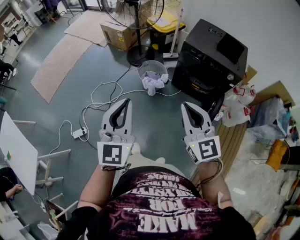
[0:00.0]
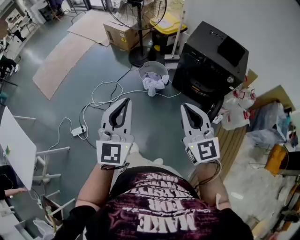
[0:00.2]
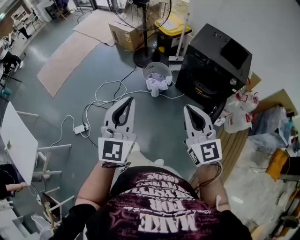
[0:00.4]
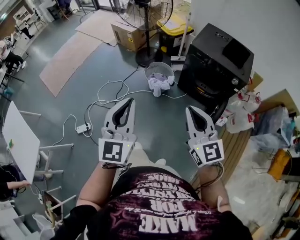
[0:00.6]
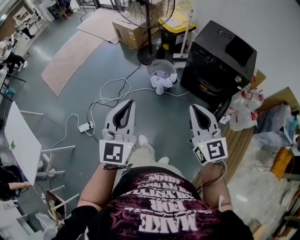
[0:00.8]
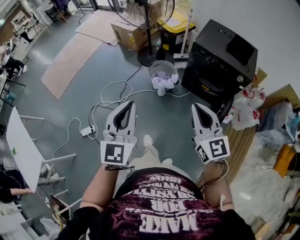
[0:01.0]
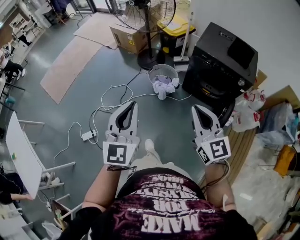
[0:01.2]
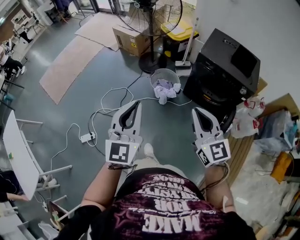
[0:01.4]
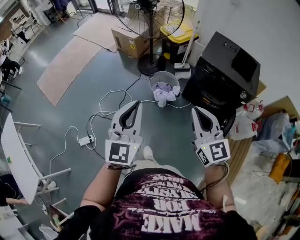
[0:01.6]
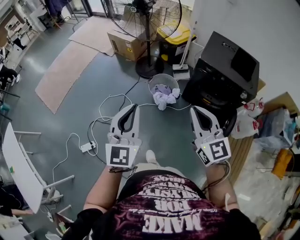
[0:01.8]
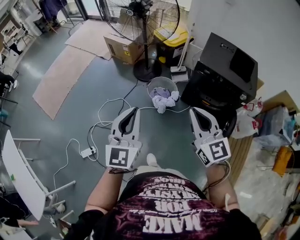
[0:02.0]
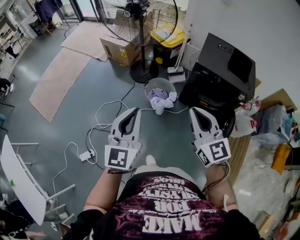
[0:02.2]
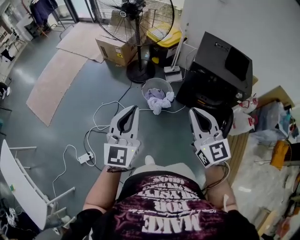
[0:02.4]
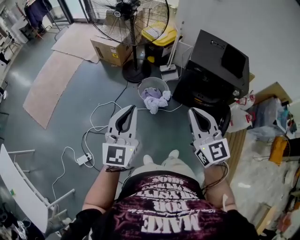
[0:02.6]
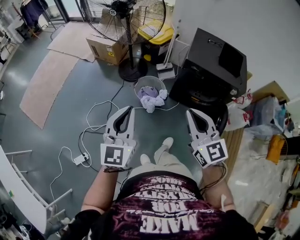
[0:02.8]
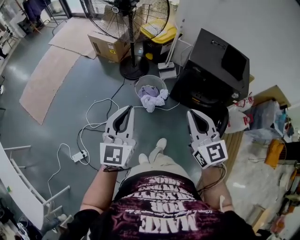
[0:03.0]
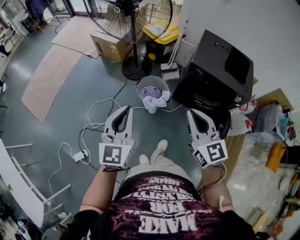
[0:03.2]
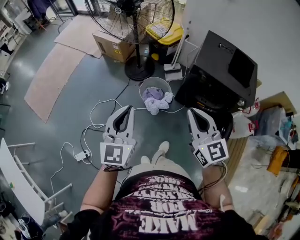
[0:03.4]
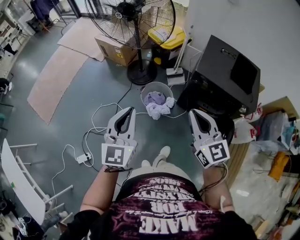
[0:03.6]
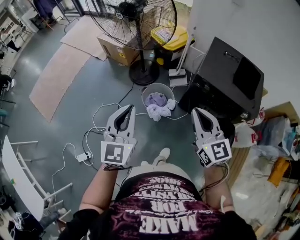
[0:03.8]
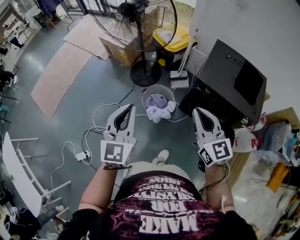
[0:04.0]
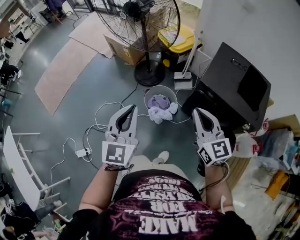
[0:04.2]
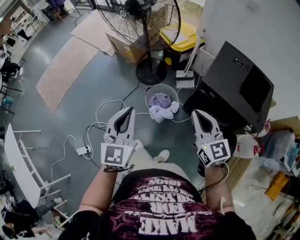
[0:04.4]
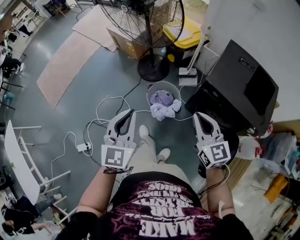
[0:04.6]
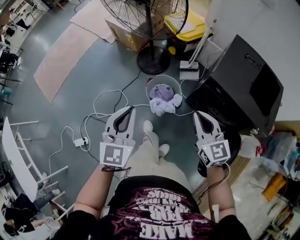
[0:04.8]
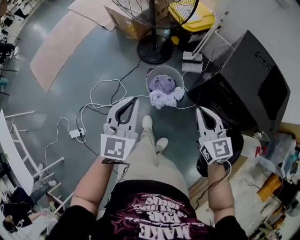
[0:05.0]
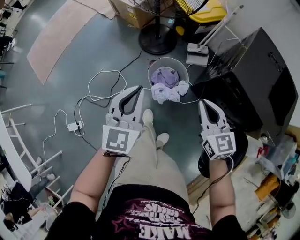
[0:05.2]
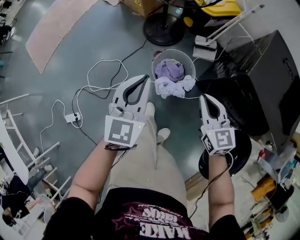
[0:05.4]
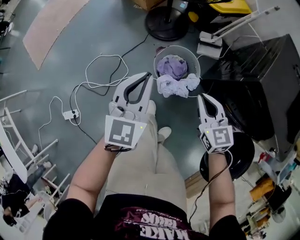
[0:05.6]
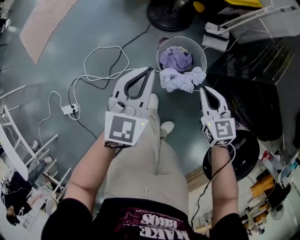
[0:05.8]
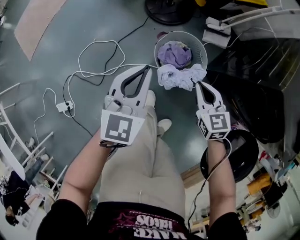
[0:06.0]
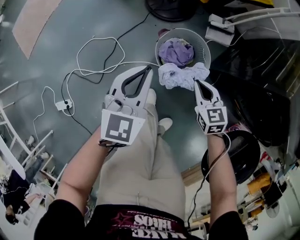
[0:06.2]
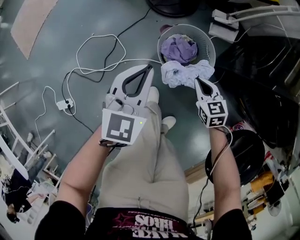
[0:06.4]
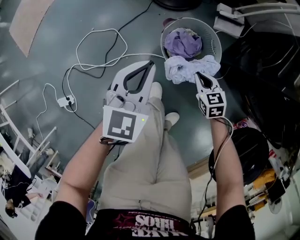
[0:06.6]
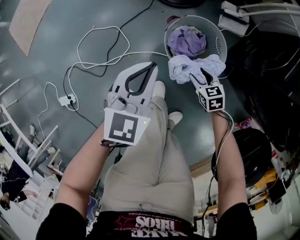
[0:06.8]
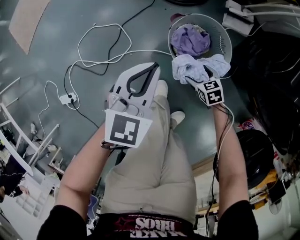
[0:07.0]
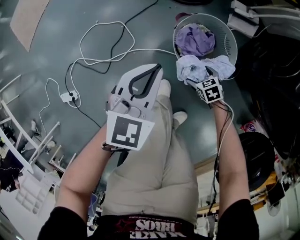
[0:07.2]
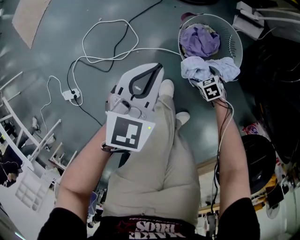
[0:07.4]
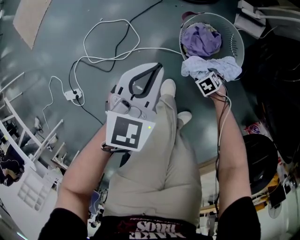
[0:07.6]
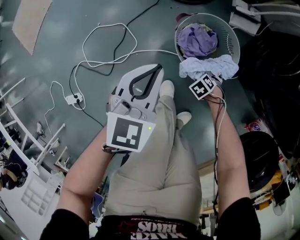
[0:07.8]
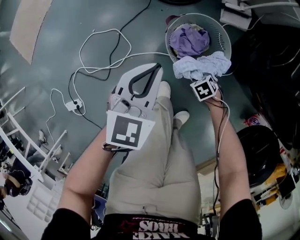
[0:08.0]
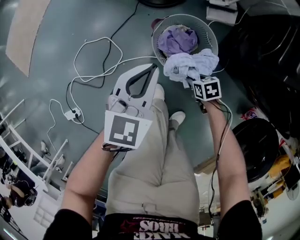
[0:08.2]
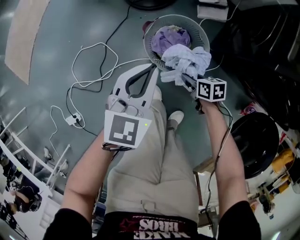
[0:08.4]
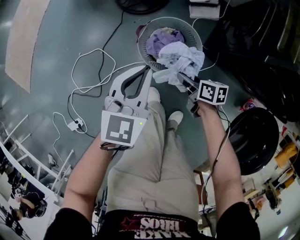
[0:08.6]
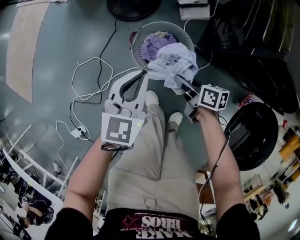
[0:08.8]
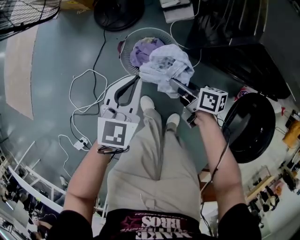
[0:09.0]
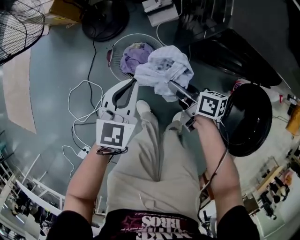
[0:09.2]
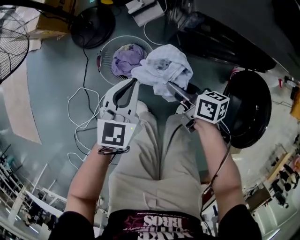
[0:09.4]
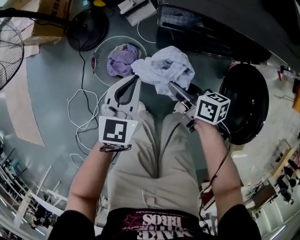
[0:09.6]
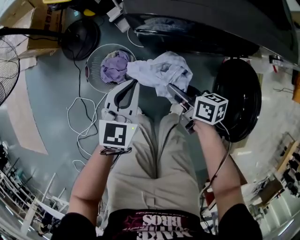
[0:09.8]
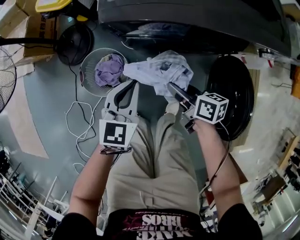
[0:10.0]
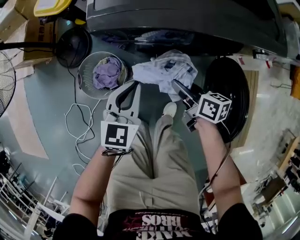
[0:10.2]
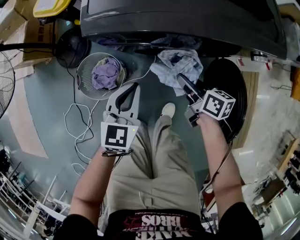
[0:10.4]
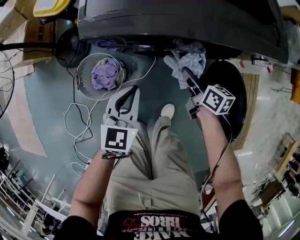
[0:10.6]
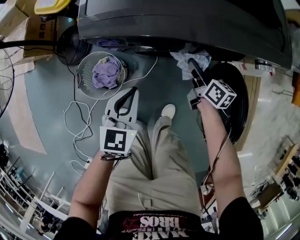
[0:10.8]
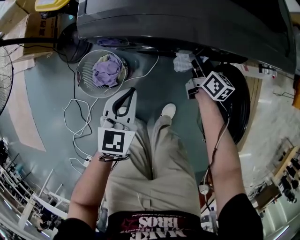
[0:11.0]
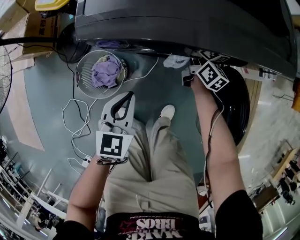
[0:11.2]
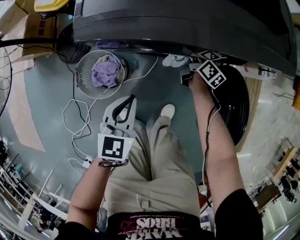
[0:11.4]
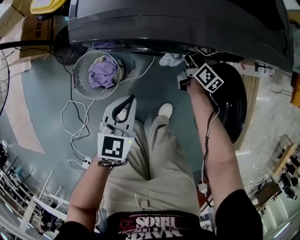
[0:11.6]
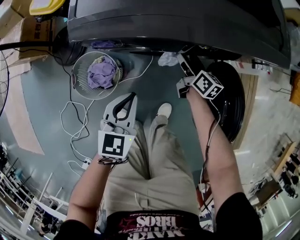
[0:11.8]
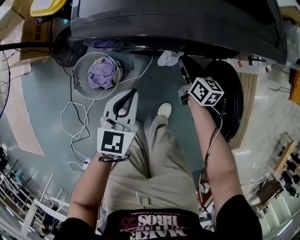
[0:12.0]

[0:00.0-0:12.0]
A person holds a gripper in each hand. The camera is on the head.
0:00.0 to 0:01.6: The two grippers go about 10 cm forward.
0:01.6 to 0:03.0: The left gripper shifts about 15 cm forward and downward, while the right gripper travels forward by approximately 10 cm.
0:03.0 to 0:04.4: The two grippers go about 20 cm forward and to the right.
0:04.4 to 0:06.0: The left gripper travels downward and forward by approximately 40 cm, while the right gripper goes approximately 50 cm downward, and swivels roughly 30 degrees.
0:06.0 to 0:07.6: The right gripper heads downward, covering some 40 cm, tips its fingers downward by roughly 40 degrees, and opens its fingers. Meanwhile the left gripper heads downward, covering roughly 15 cm.
0:07.6 to 0:09.0: The right gripper goes approximately 35 cm upward, tips its fingers upward by roughly 50 degrees, and closes, while the left gripper shifts by some 20 cm.
0:09.0 to 0:10.4: The right gripper moves about 35 cm, and turns by some 30 degrees; the left gripper shifts by some 30 cm.
0:10.4 to 0:12.0: The right gripper moves forward and downward, about 10 cm, changes its angle by roughly 20 degrees, and opens, then closes once more.

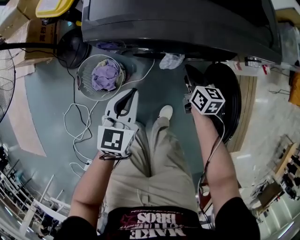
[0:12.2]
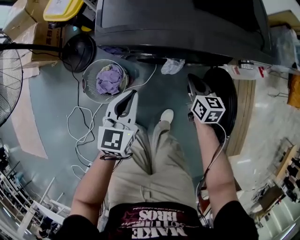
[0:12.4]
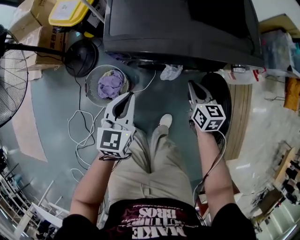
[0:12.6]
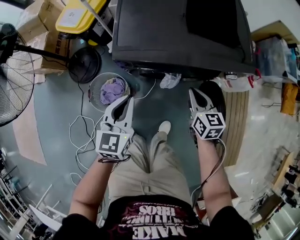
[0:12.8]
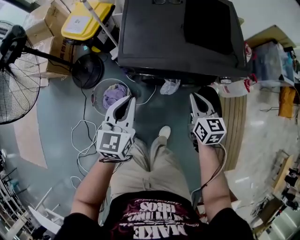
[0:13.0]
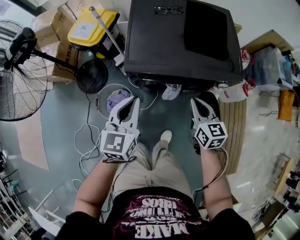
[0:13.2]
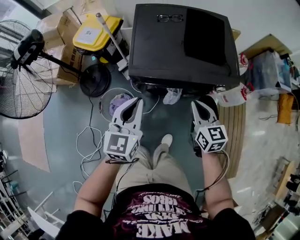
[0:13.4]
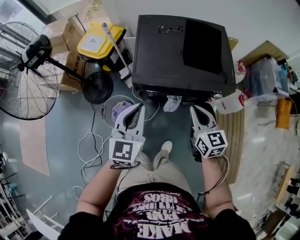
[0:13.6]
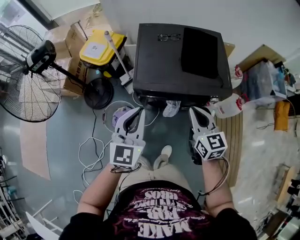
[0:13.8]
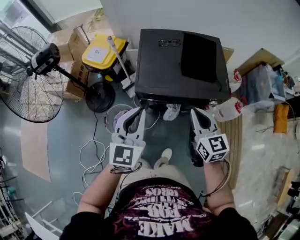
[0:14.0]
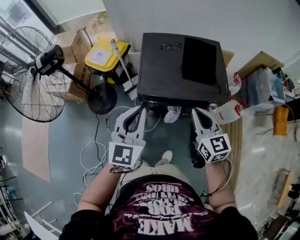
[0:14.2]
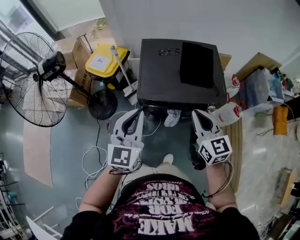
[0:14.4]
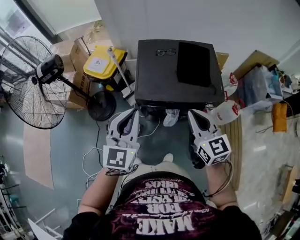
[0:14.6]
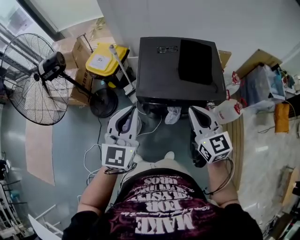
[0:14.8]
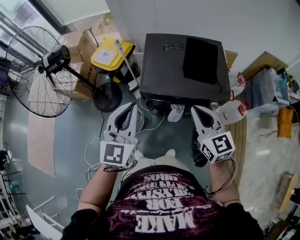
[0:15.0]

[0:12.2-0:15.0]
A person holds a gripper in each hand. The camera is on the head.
0:12.2 to 0:13.6: The grippers both shift upward by some 30 cm. The right gripper rotates roughly 20 degrees.
0:13.6 to 0:15.0: The two grippers go approximately 15 cm upward.

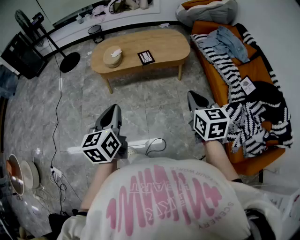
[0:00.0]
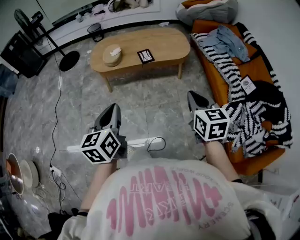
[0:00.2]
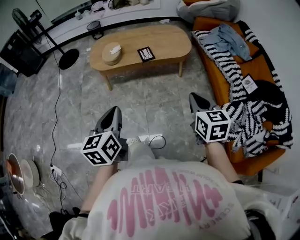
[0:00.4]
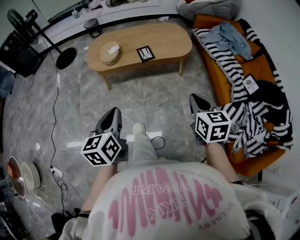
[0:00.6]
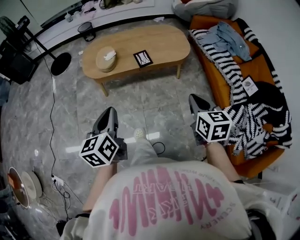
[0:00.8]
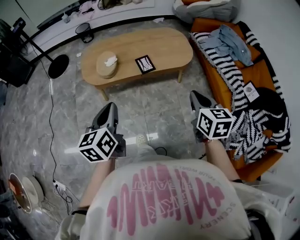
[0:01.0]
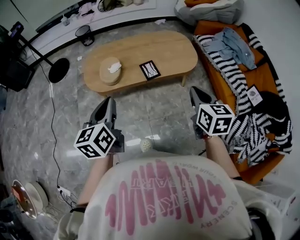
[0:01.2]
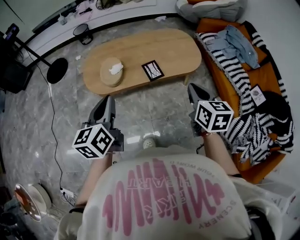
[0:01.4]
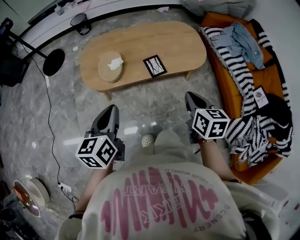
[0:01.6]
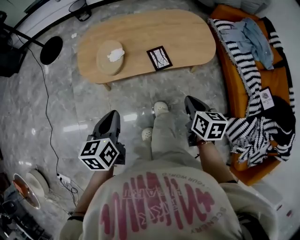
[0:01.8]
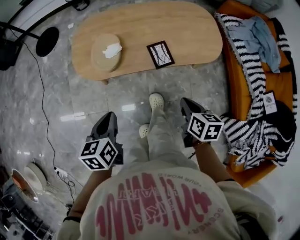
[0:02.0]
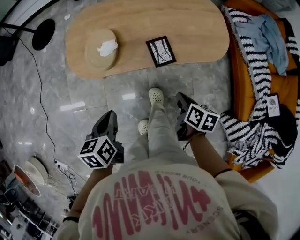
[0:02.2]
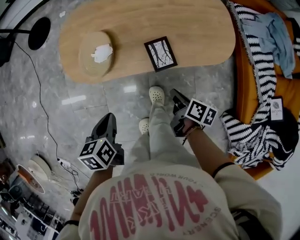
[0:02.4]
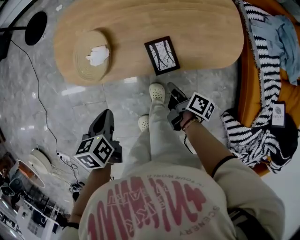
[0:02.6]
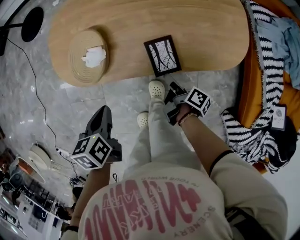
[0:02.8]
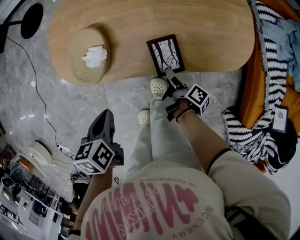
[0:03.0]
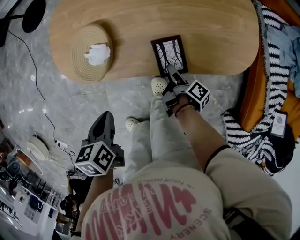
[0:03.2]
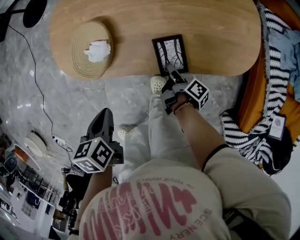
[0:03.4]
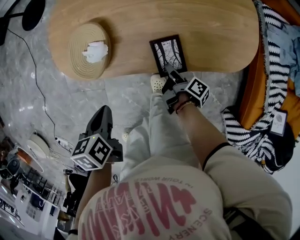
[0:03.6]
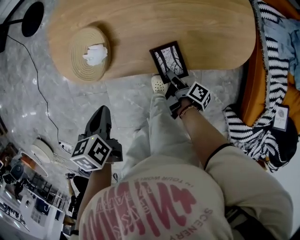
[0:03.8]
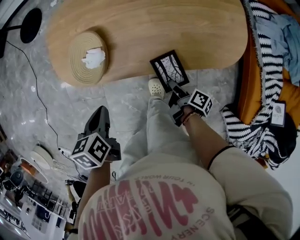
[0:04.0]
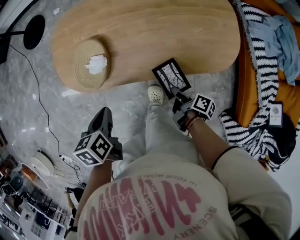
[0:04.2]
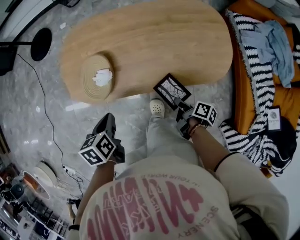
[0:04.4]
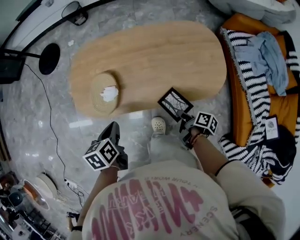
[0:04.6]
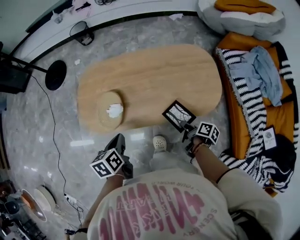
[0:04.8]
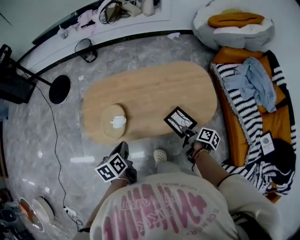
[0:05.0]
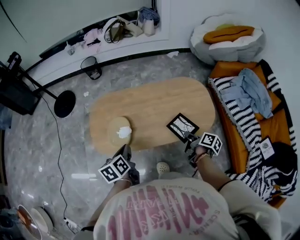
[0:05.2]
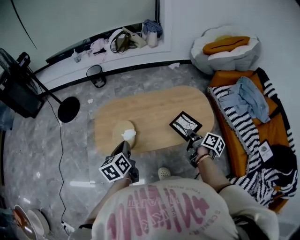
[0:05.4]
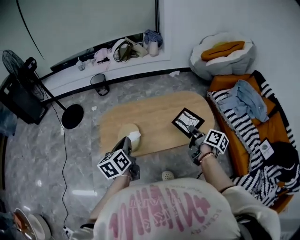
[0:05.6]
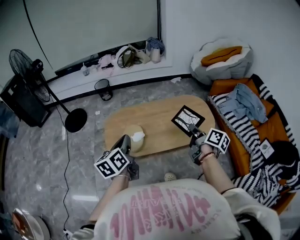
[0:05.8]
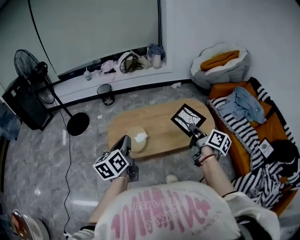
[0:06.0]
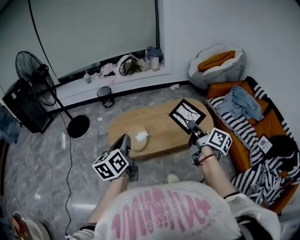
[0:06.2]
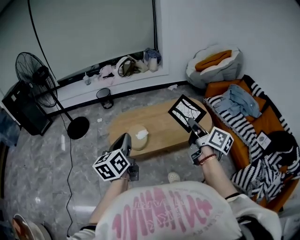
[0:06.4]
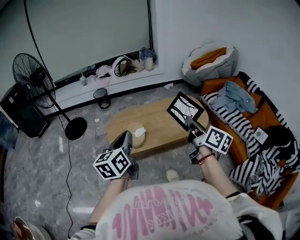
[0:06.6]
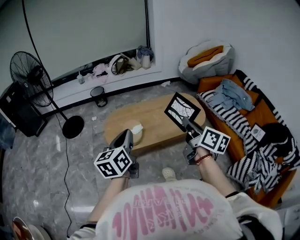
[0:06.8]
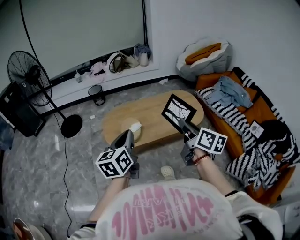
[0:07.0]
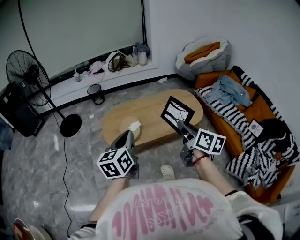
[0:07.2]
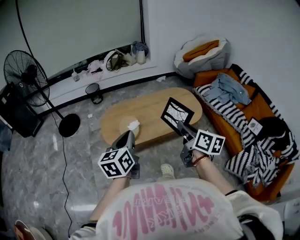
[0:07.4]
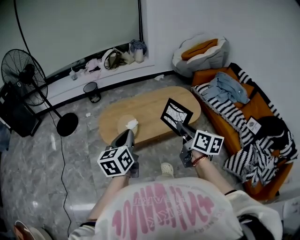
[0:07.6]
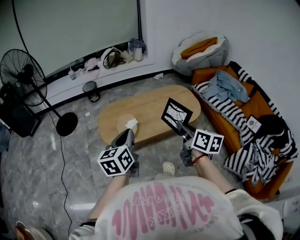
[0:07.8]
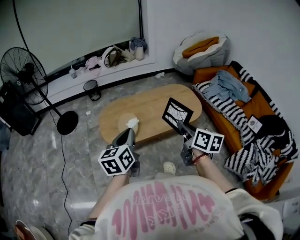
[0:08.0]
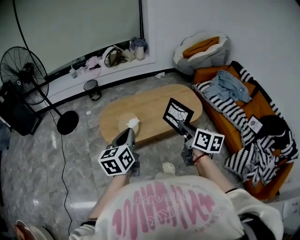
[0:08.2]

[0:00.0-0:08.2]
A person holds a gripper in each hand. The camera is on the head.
0:00.0 to 0:01.6: The two grippers go about 30 cm forward.
0:01.6 to 0:03.2: The right gripper is displaced downward and forward by approximately 40 cm, rolls clockwise, seen from behind, by some 80 degrees, and opens. The left gripper moves downward and forward, roughly 30 cm, and tilts its fingers approximately 40 degrees downward.
0:03.2 to 0:05.0: The left gripper heads upward and forward, covering about 10 cm; the right gripper shifts roughly 20 cm upward and to the right, turns by approximately 20 degrees, and closes its fingers.
0:05.0 to 0:06.6: The two grippers go roughly 40 cm upward and backward. The left gripper tilts its fingers roughly 40 degrees upward; the right gripper tips its fingers upward by about 40 degrees.
0:06.6 to 0:08.2: The right gripper is displaced downward by approximately 5 cm. The left gripper ends up some 5 cm from where it was.
